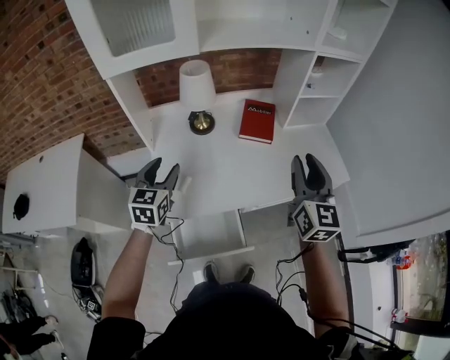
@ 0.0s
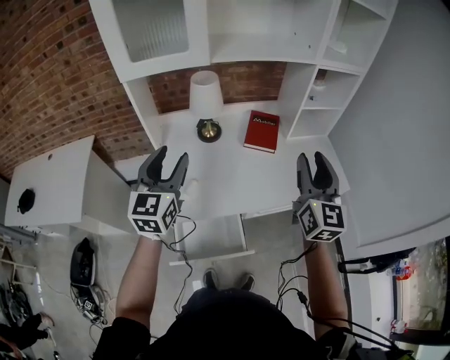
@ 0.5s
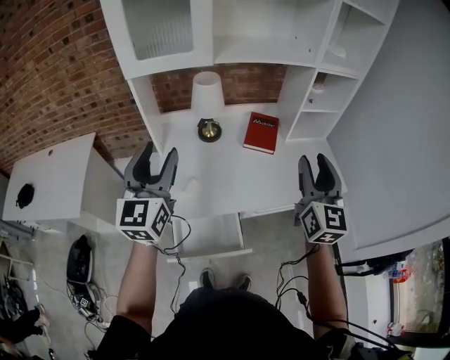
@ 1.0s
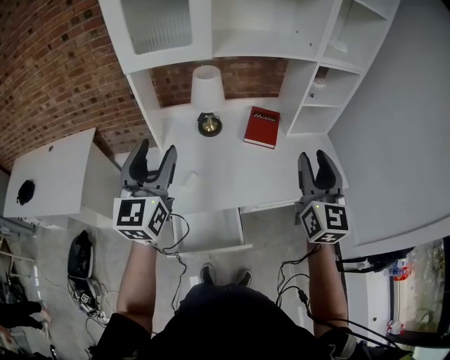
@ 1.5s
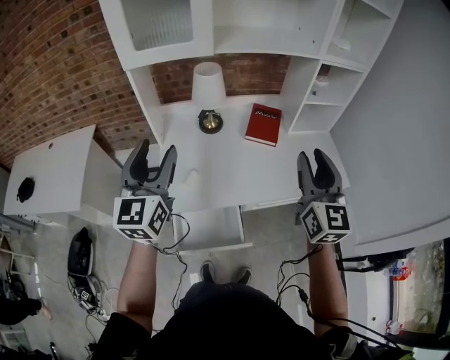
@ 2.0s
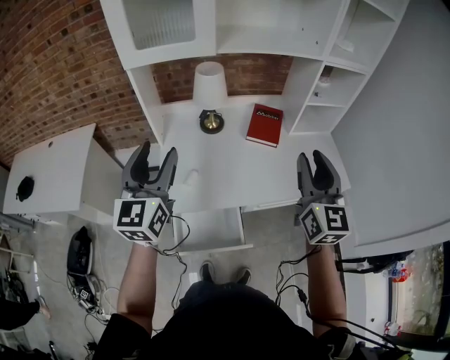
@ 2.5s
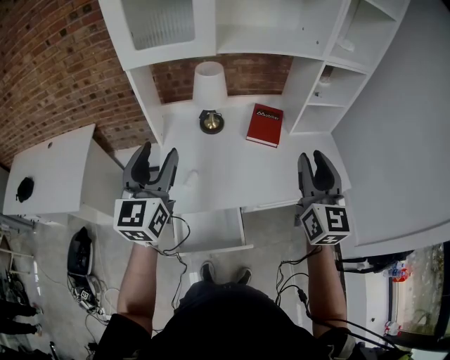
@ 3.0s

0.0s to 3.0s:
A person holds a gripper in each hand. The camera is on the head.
0.0s to 1.5s: The left gripper heads upward and backward, covering some 20 cm, and rotates roughly 30 degrees, while the right gripper shifts about 5 cm upward.
1.5s to 3.0s: The grippers move only a little.

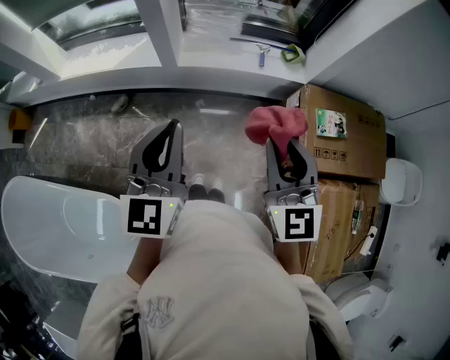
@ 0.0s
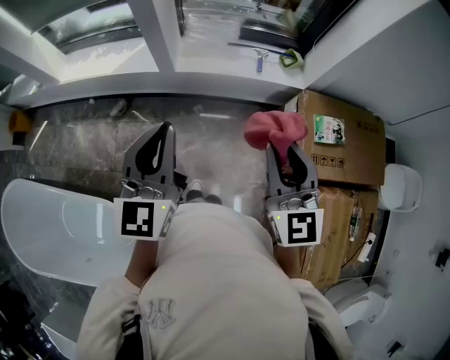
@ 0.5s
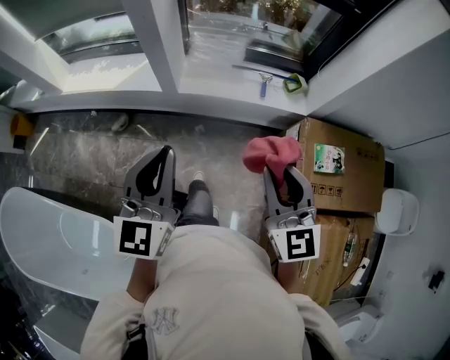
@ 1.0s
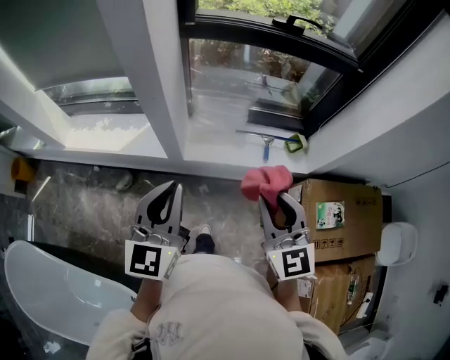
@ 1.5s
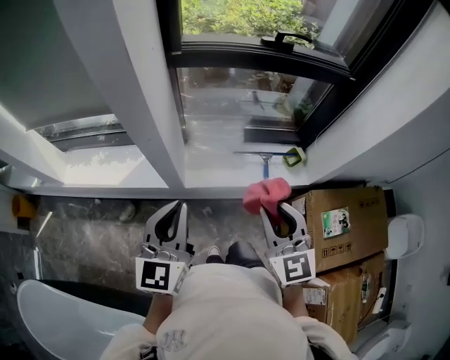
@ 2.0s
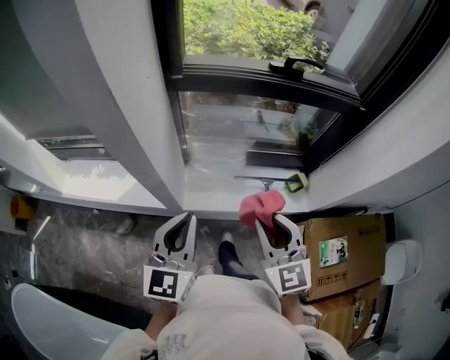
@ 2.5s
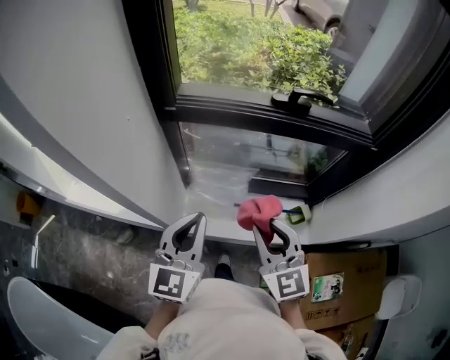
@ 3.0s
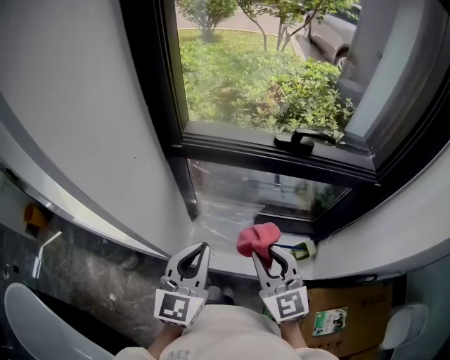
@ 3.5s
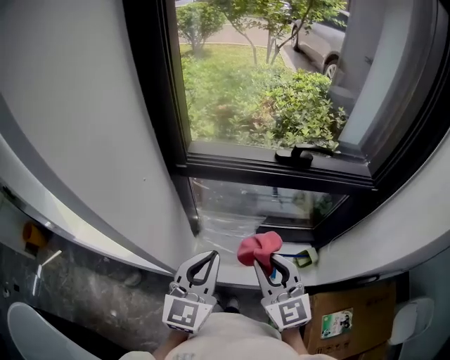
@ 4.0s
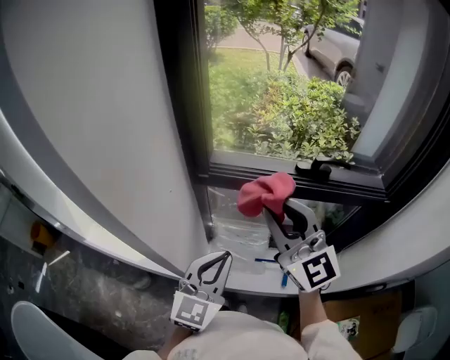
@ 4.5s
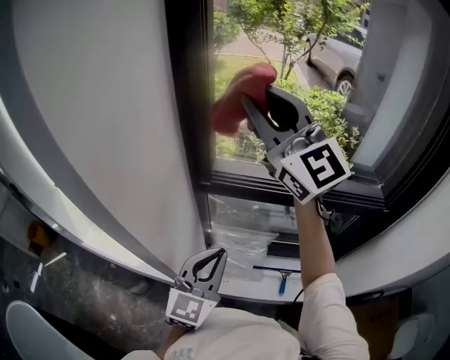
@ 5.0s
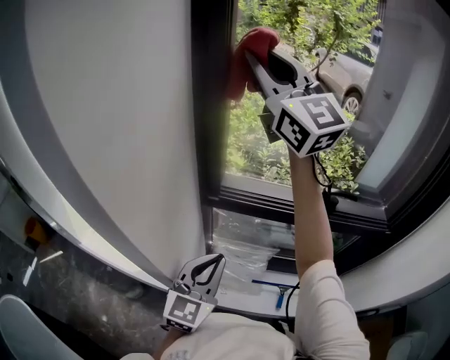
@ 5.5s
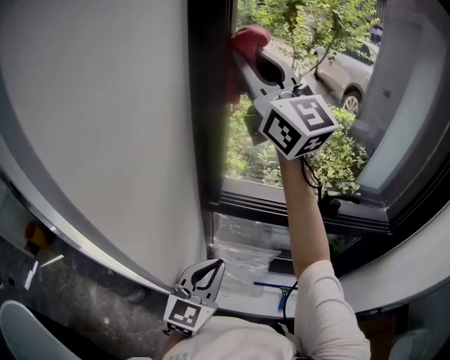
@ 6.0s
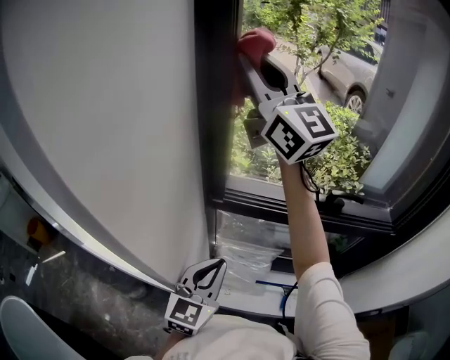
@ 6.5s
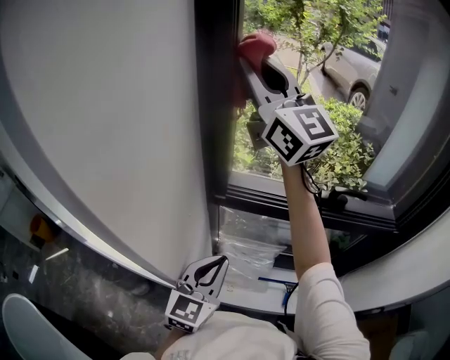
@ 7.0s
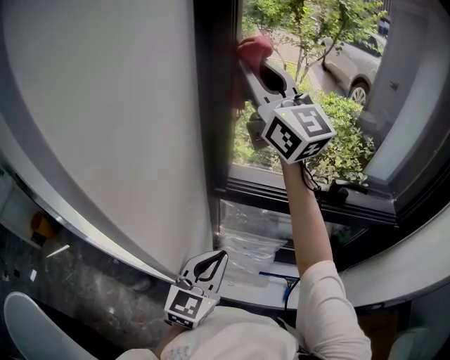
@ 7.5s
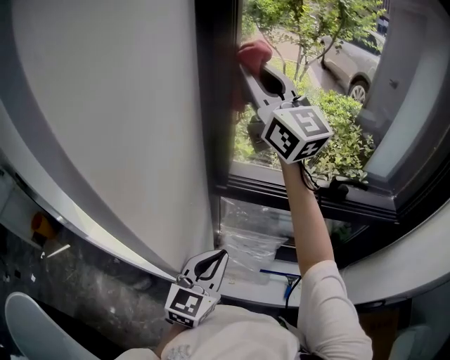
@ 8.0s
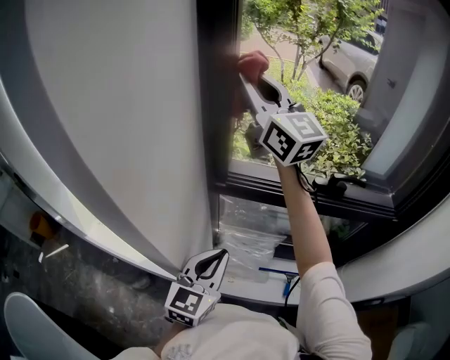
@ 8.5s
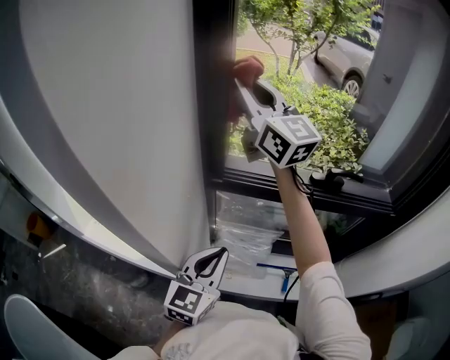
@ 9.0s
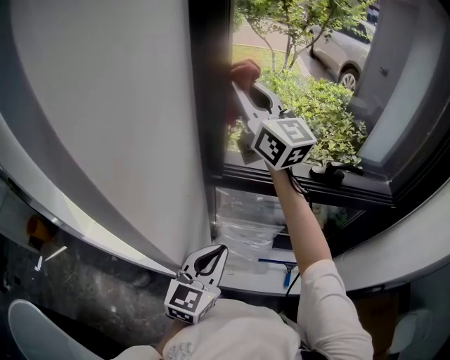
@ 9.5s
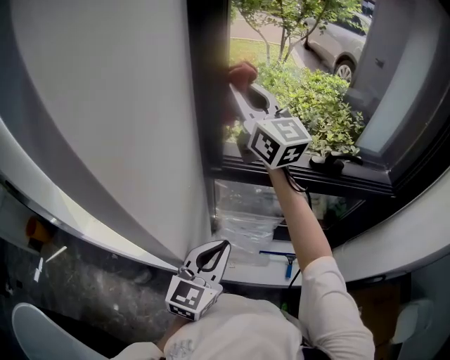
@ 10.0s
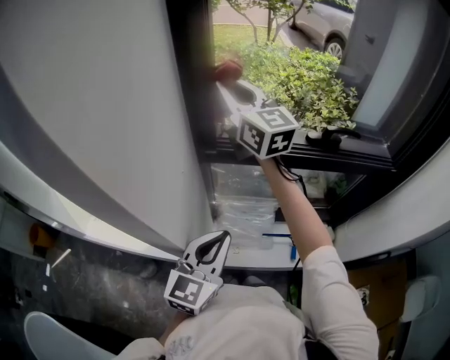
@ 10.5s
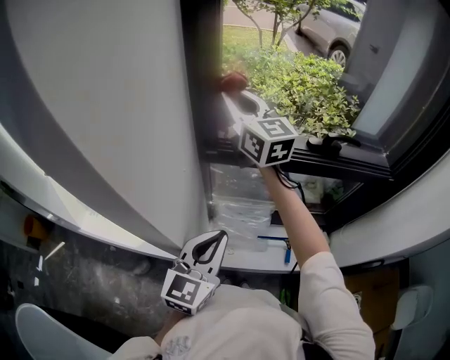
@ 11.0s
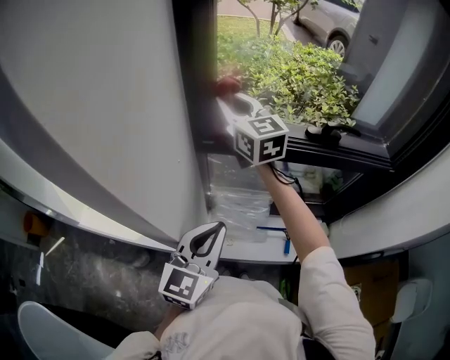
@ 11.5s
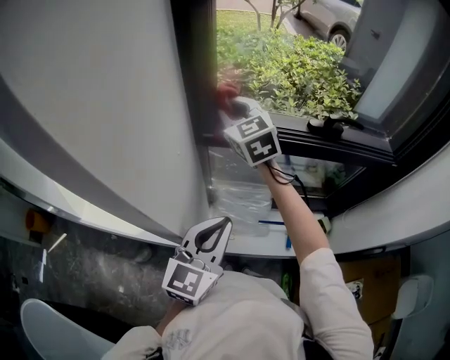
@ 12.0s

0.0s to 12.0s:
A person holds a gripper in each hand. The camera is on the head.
0.0s to 2.0s: Both grippers travel together forward, approximately 30 cm.
2.0s to 4.0s: The left gripper moves forward and to the right, some 25 cm. Meanwhile the right gripper shifts some 20 cm forward.
4.0s to 6.0s: The right gripper goes approximately 50 cm upward and forward, and tips its fingers upward by about 30 degrees. Meanwhile the left gripper travels forward and to the left by about 10 cm.
6.0s to 8.0s: The right gripper goes about 5 cm downward.
8.0s to 10.0s: The right gripper shifts about 10 cm downward.
10.0s to 12.0s: The right gripper moves downward, roughly 15 cm, and points its fingers about 30 degrees further downward.

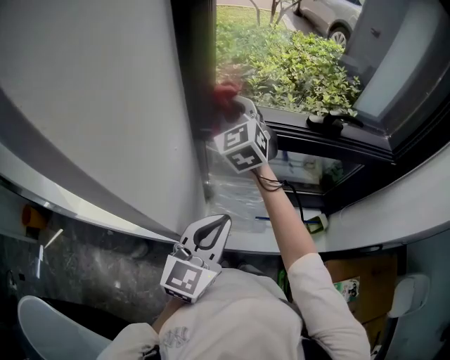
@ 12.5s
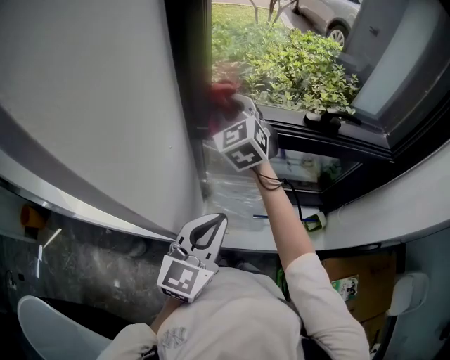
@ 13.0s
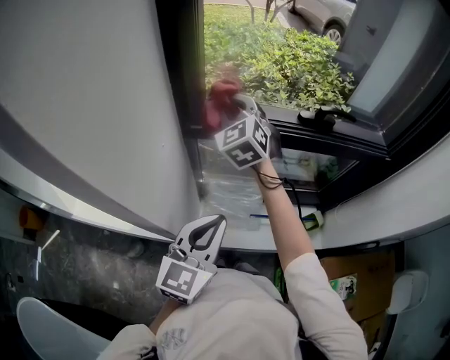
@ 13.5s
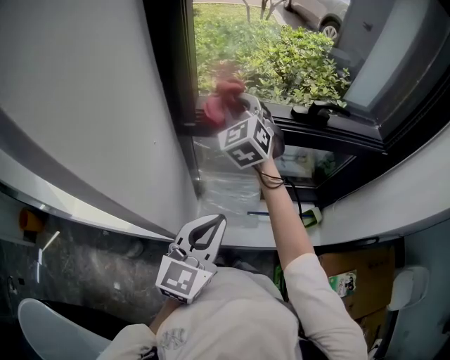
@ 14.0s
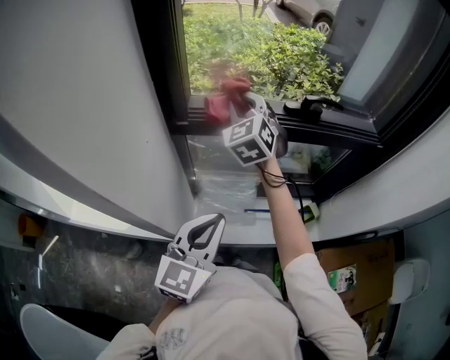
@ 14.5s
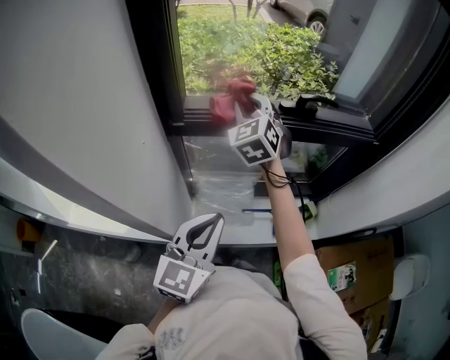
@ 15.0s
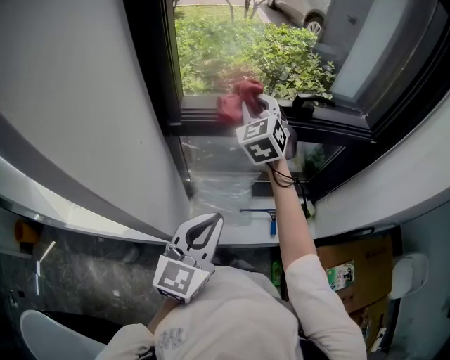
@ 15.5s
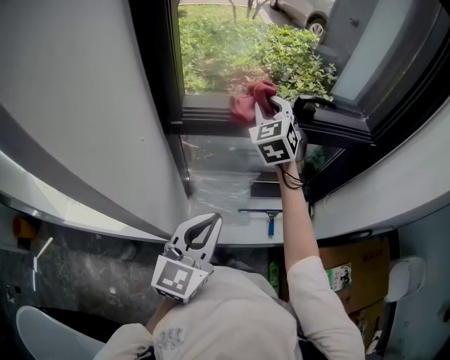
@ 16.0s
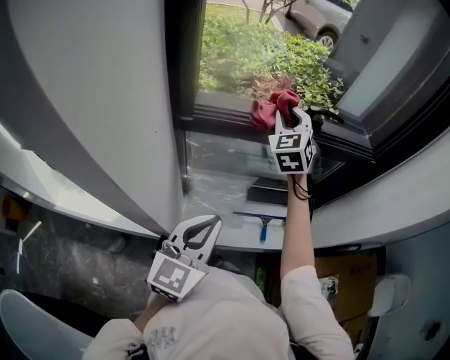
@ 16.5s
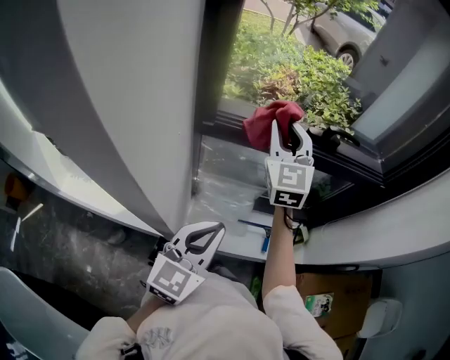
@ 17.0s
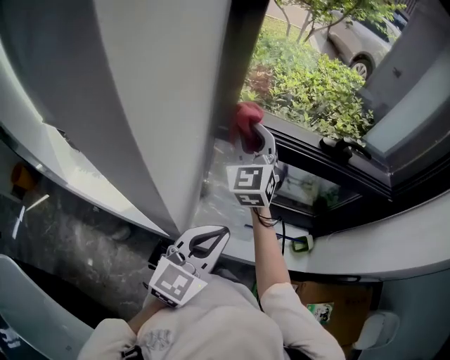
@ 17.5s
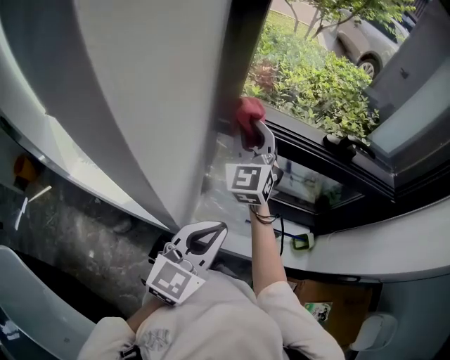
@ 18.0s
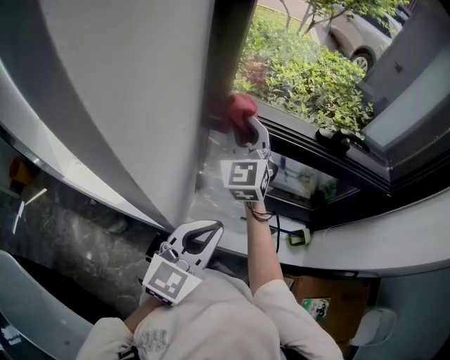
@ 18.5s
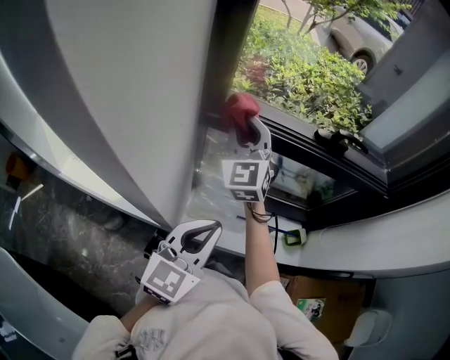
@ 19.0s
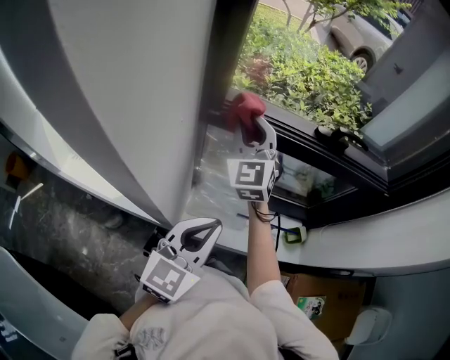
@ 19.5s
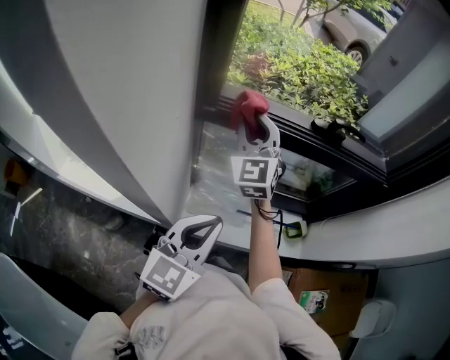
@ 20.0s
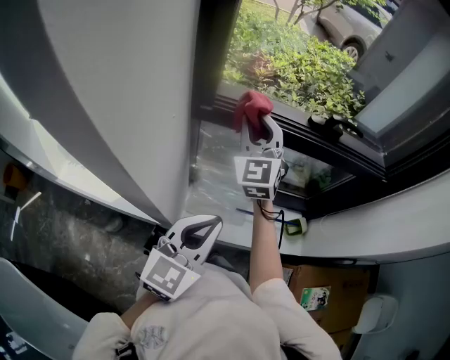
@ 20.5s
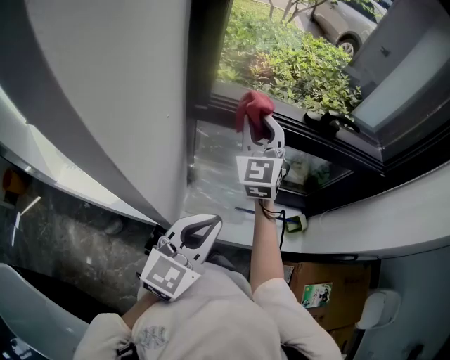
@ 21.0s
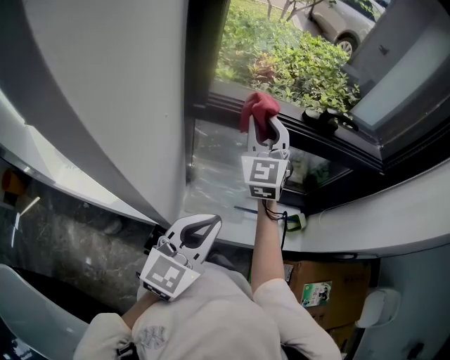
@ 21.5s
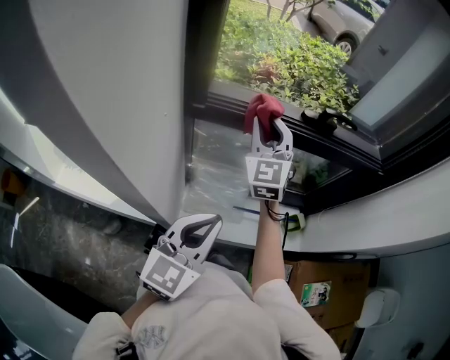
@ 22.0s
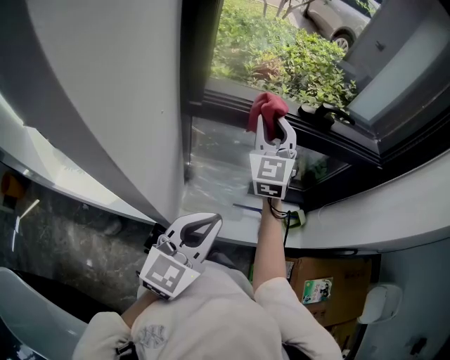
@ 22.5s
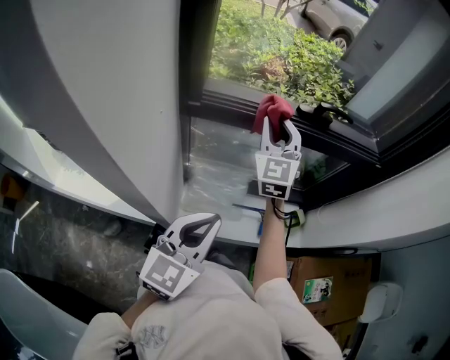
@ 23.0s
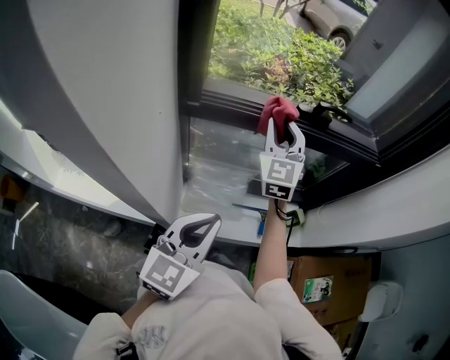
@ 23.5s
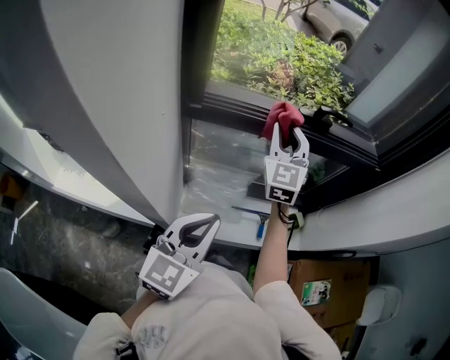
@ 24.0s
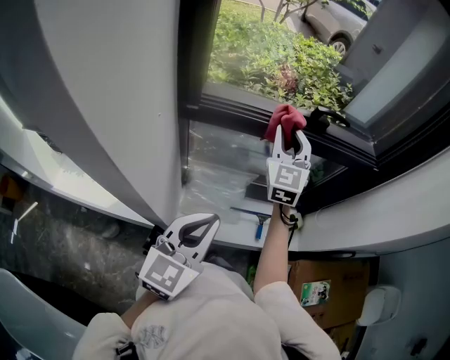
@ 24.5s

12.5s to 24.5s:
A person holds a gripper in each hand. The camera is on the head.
12.5s to 14.5s: The right gripper goes roughly 10 cm to the right.
14.5s to 16.5s: The right gripper moves to the right, some 10 cm.
16.5s to 18.5s: The right gripper is displaced to the left and backward by roughly 20 cm, and turns by some 30 degrees.
18.5s to 20.5s: The right gripper travels to the right by some 5 cm.
20.5s to 22.5s: The right gripper goes roughly 5 cm to the right.
22.5s to 24.5s: The right gripper goes roughly 5 cm to the right.
